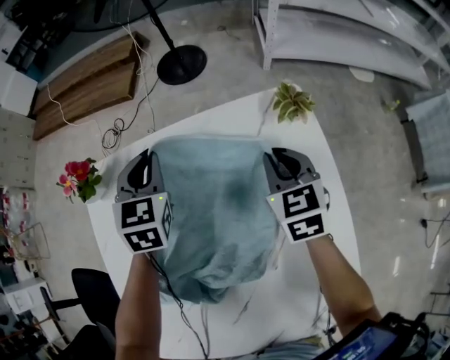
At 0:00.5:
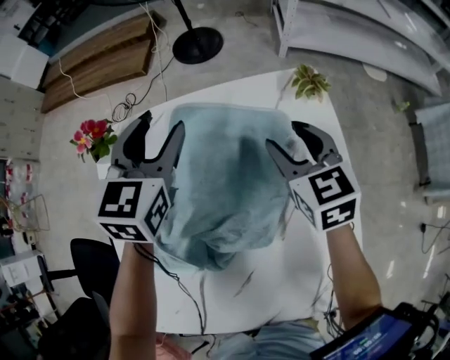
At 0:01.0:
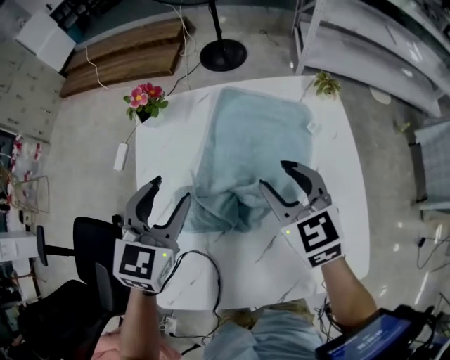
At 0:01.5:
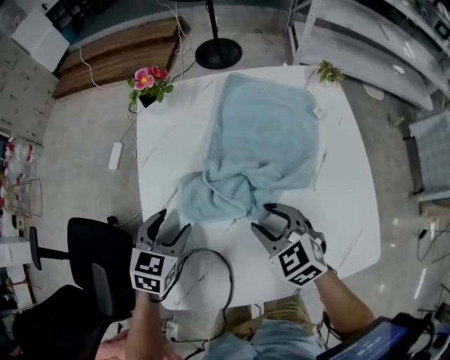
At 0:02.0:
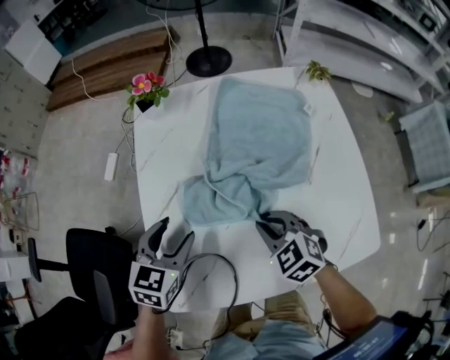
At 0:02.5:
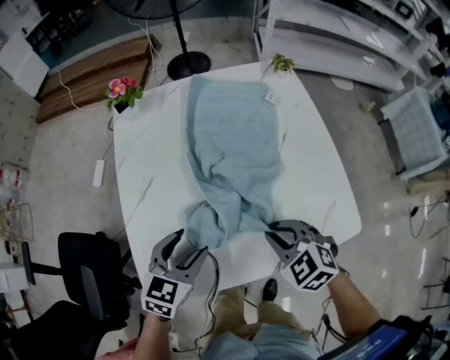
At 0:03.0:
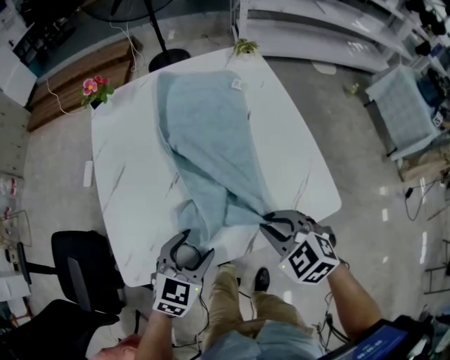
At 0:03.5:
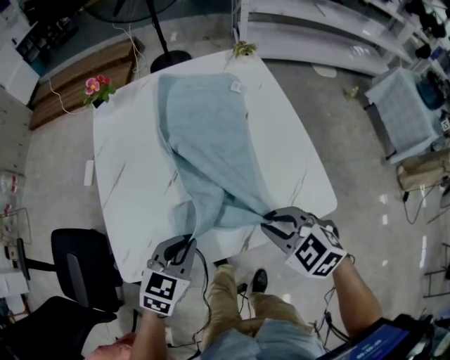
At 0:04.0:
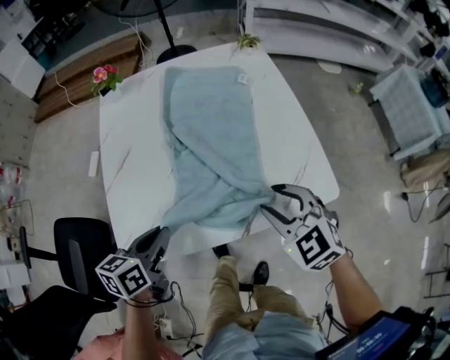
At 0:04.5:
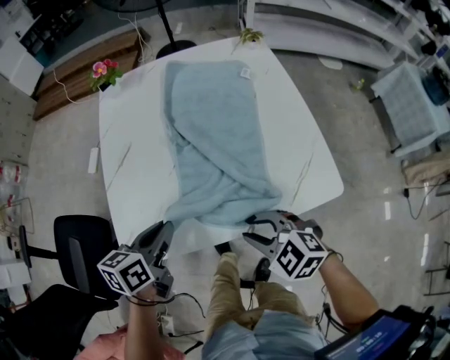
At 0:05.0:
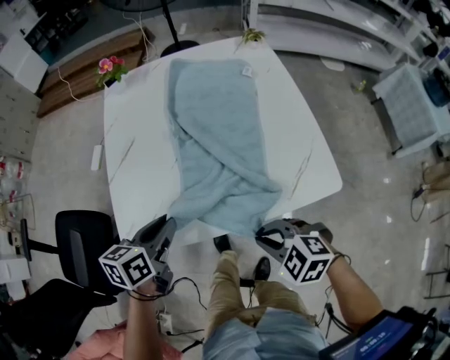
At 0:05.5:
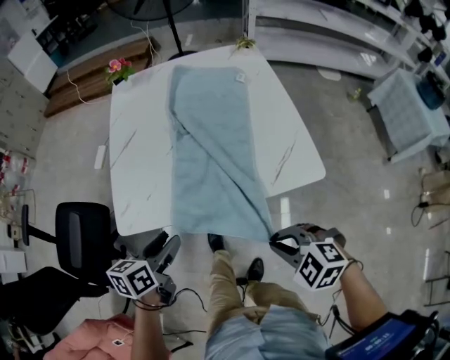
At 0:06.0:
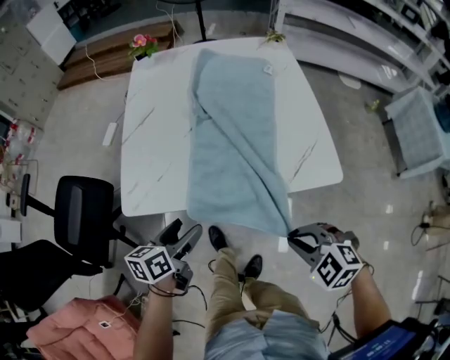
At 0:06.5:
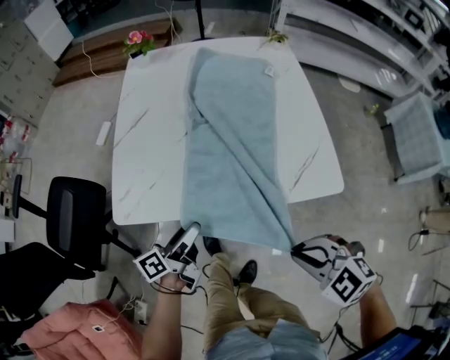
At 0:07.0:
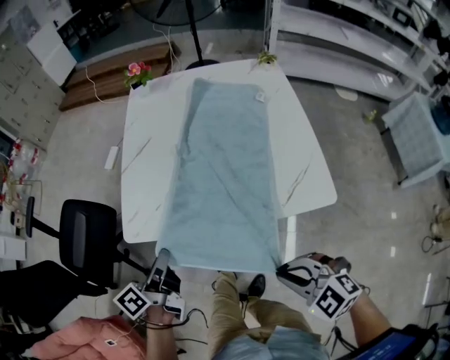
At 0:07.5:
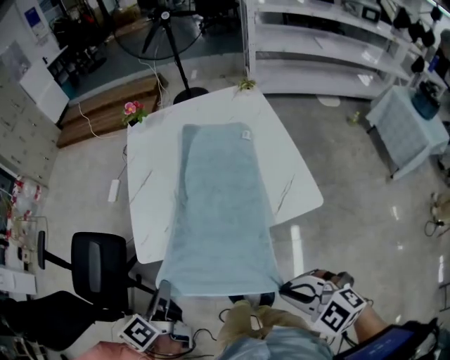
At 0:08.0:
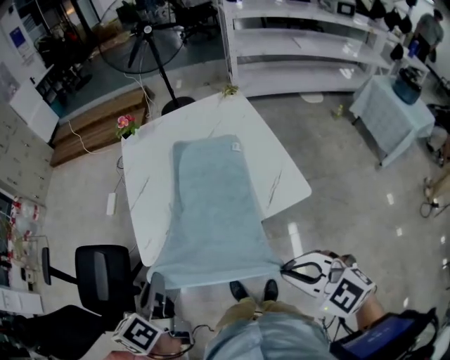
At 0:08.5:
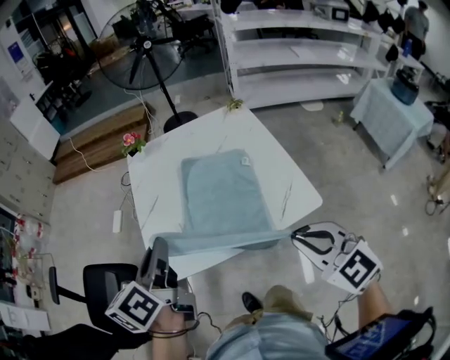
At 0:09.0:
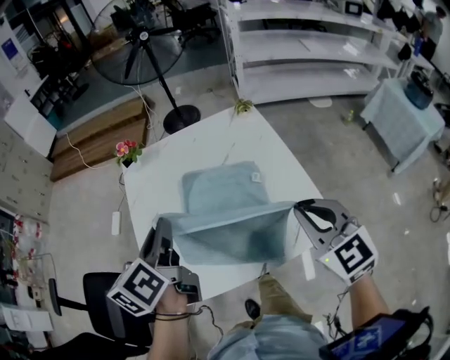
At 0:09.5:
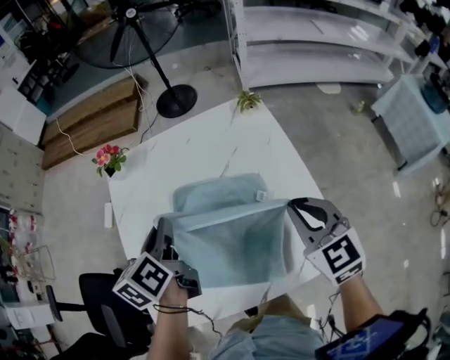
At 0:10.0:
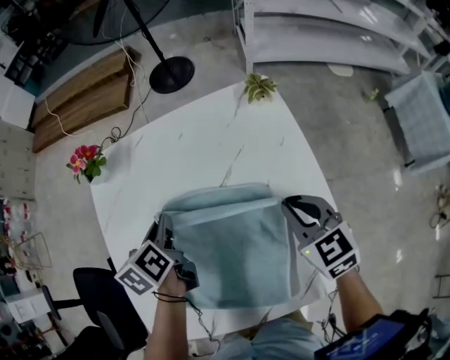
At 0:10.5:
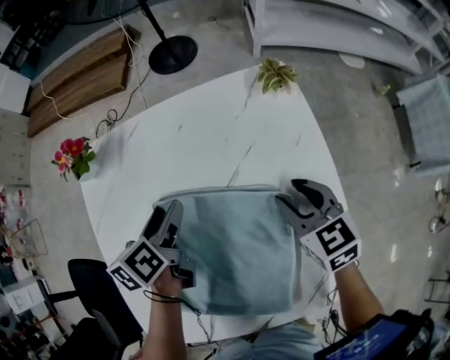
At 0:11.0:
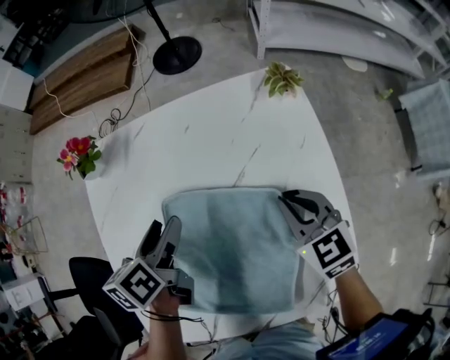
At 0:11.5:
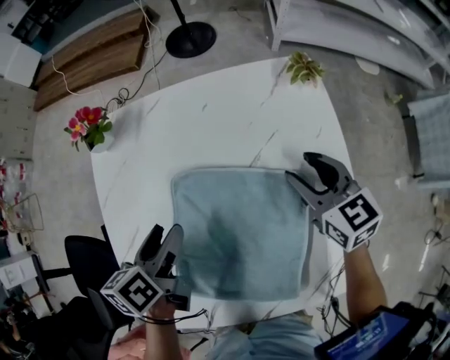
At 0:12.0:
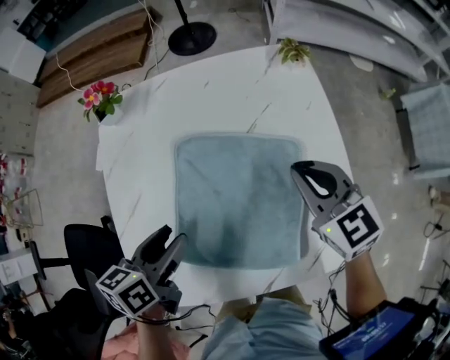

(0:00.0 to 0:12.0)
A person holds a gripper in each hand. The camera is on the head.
0:00.0 - 0:02.0: Both grippers move backward and to the left, roughly 40 cm. The left gripper changes its angle by roughly 20 degrees, and opens. The right gripper swivels approximately 40 degrees, and opens, then closes once more.
0:02.0 - 0:04.0: The right gripper is displaced to the right, backward and upward by some 20 cm, and opens, while the left gripper heads backward and to the right, covering approximately 20 cm, rotates about 30 degrees, and closes its fingers.
0:04.0 - 0:06.0: The left gripper goes roughly 15 cm backward and downward, and opens its fingers. Meanwhile the right gripper travels backward by some 20 cm, turns by some 30 degrees, and closes.
0:06.0 - 0:08.0: The two grippers go roughly 20 cm upward. The right gripper changes its angle by some 20 degrees, while the left gripper closes its fingers.
0:08.0 - 0:10.0: The pair of grippers is taken forward, roughly 50 cm. The right gripper rotates some 30 degrees. The left gripper changes its angle by roughly 20 degrees.
0:10.0 - 0:12.0: The right gripper travels to the left by about 5 cm, travels forward and back again, some 10 cm each way, and opens, then closes once more. Meanwhile the left gripper shifts some 15 cm backward, changes its angle by roughly 20 degrees, and opens its fingers.

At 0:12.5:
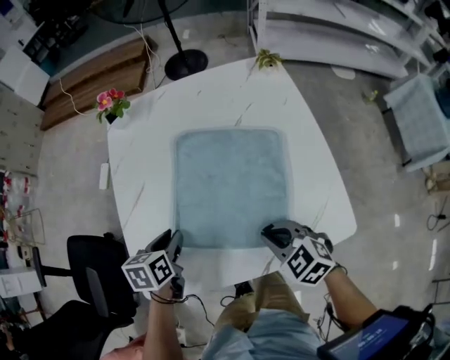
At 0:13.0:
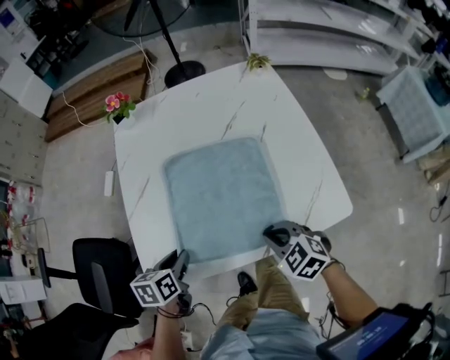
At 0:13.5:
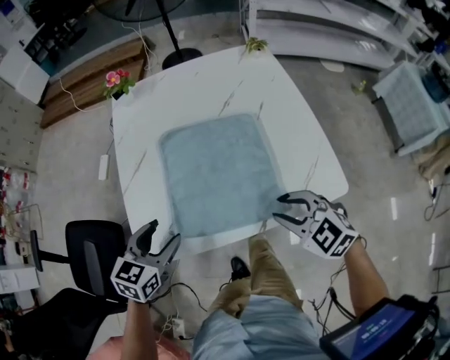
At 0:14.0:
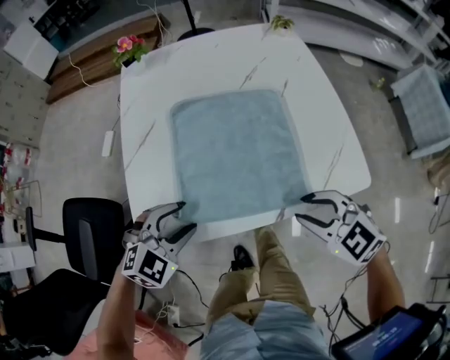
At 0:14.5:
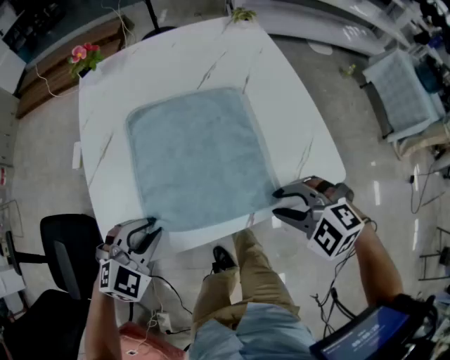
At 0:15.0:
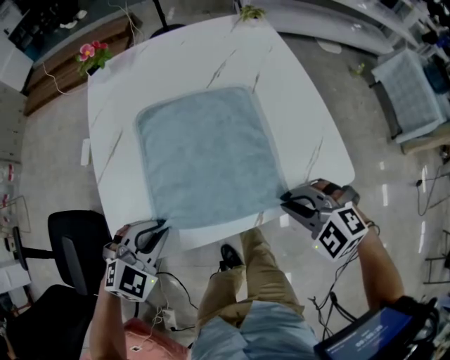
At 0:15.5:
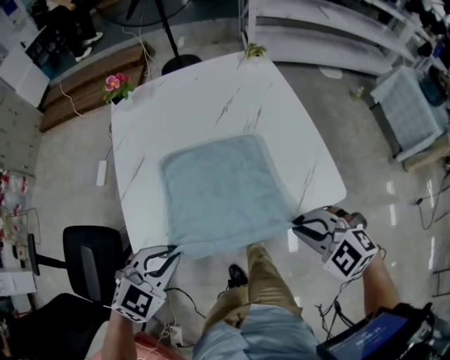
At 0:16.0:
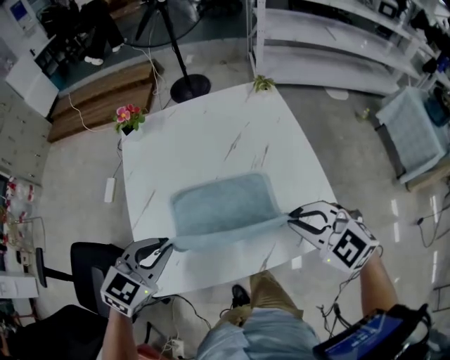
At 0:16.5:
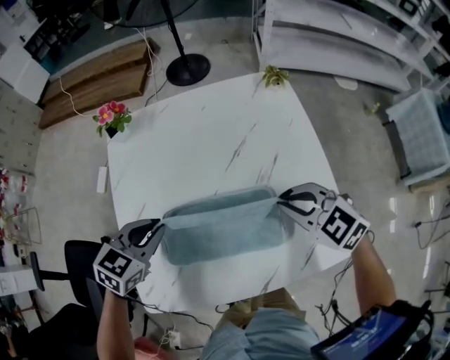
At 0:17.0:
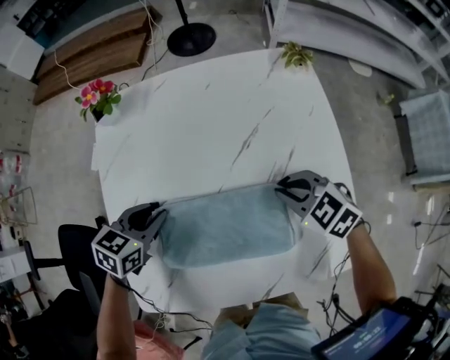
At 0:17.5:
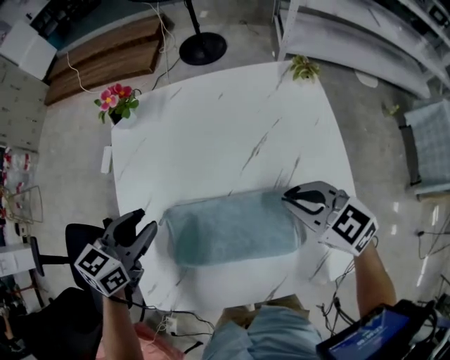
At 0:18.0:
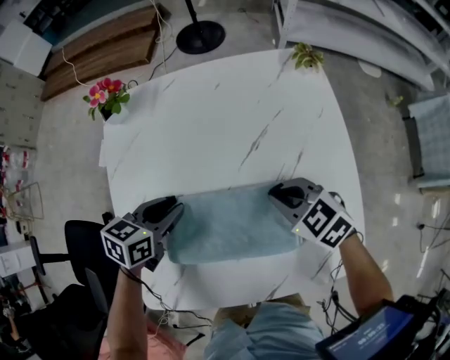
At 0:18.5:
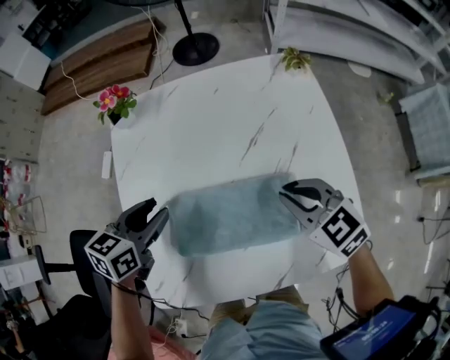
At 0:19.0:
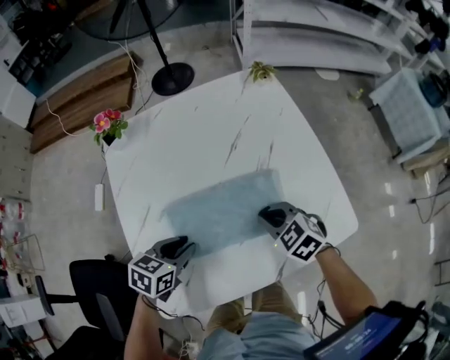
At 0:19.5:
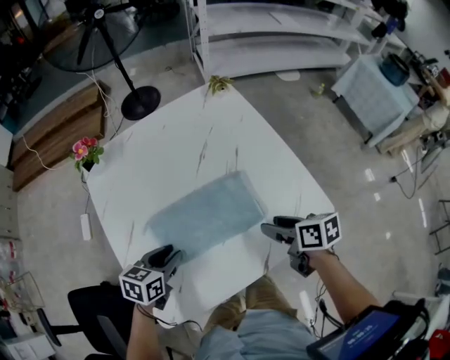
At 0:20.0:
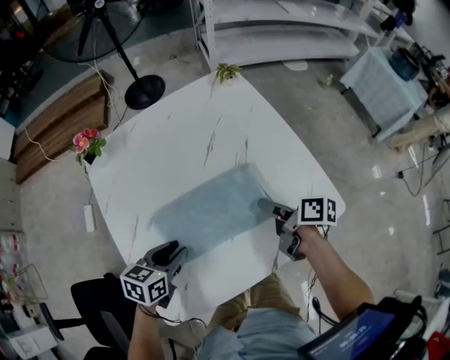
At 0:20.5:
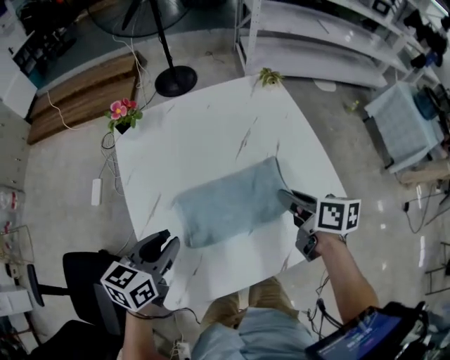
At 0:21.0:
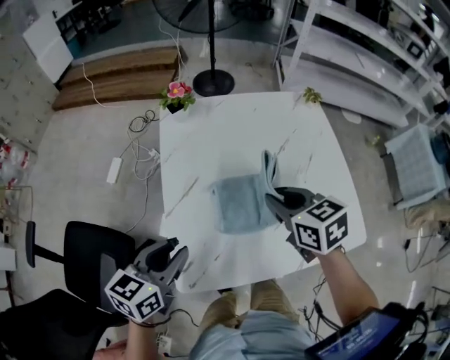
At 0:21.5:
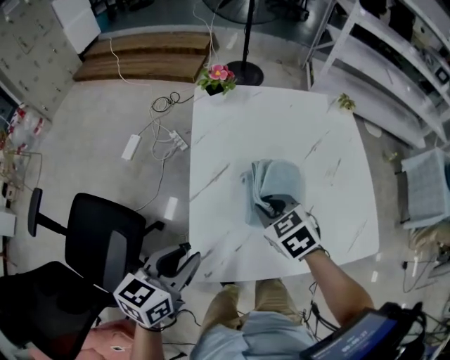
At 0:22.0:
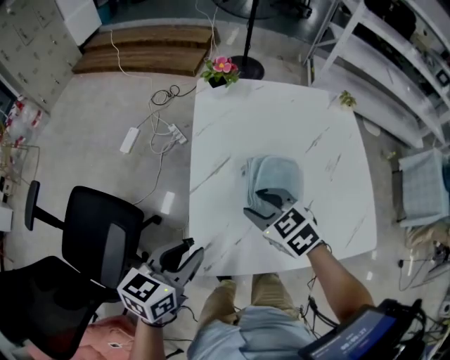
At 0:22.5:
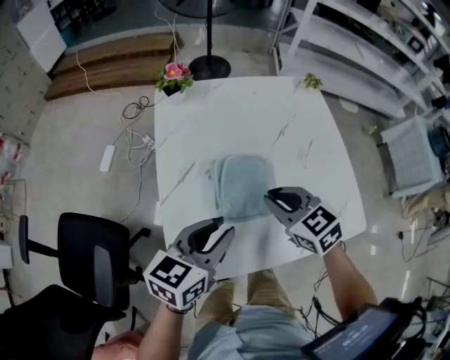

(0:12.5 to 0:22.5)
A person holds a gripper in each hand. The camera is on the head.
0:12.5 - 0:14.5: The grippers both shift backward by some 10 cm. The left gripper rotates around the line of its fingers by about 70 degrees, clockwise from behind, and opens, then closes once more; the right gripper turns by roughly 30 degrees, and opens its fingers.
0:14.5 - 0:16.5: The right gripper travels forward by roughly 20 cm, rotates roughly 20 degrees, and closes its fingers; the left gripper shifts about 20 cm forward and upward, and turns by some 30 degrees.
0:16.5 - 0:18.5: The right gripper moves up and down over roughly 10 cm, changing direction 3 times, while the left gripper swings up and down, some 10 cm each way, with 3 reversals, changes its angle by about 20 degrees, and opens up.
0:18.5 - 0:20.5: The right gripper moves backward, roughly 5 cm, rotates around the line of its fingers by about 60 degrees, clockwise from behind, and opens, then closes once more; the left gripper goes roughly 10 cm backward, and moves about 10 cm downward and comes back.
0:20.5 - 0:22.5: The right gripper travels to the left by some 15 cm, twists about 60 degrees counterclockwise, seen from behind, and opens, then closes once more. Meanwhile the left gripper is displaced backward by roughly 5 cm, and travels to the left and back again, some 10 cm each way.

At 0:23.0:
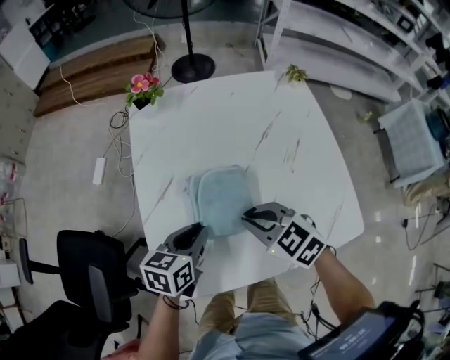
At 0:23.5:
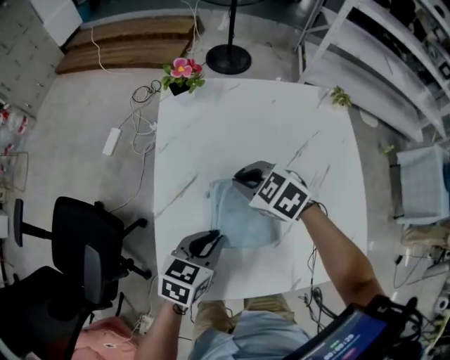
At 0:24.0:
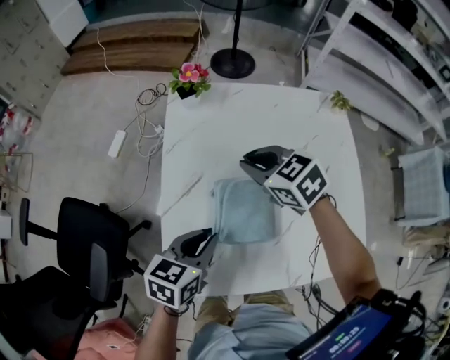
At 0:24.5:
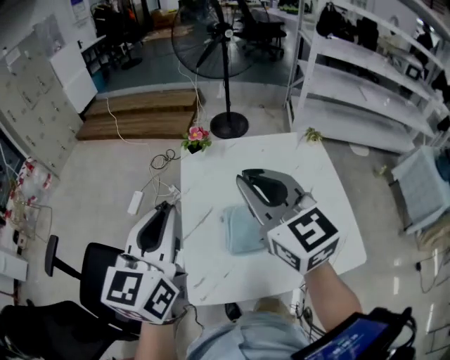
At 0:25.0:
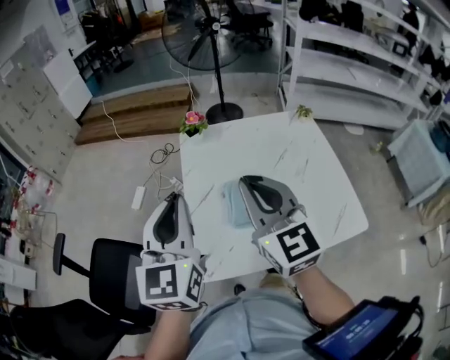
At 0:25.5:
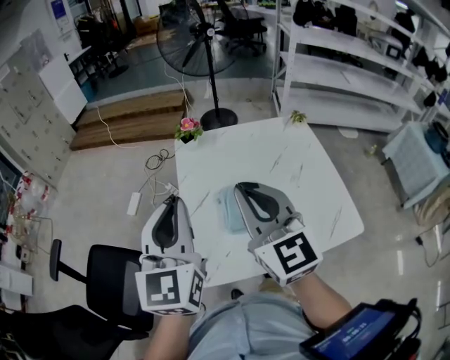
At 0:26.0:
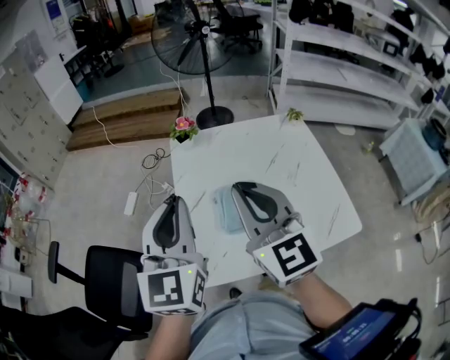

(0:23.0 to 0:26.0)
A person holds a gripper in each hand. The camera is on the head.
0:23.0 - 0:24.5: Both grippers move upward, roughly 30 cm. The right gripper angles its fingers upward, by some 40 degrees. Meanwhile the left gripper swivels roughly 40 degrees.
0:24.5 - 0:26.0: The left gripper travels backward by some 5 cm, while the right gripper shifts about 10 cm backward.

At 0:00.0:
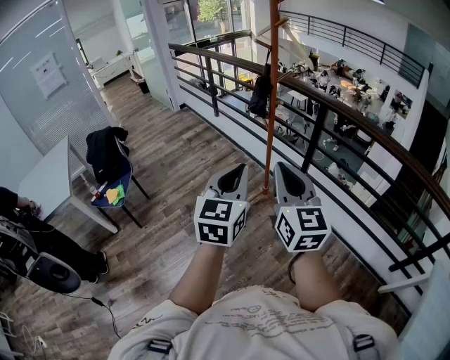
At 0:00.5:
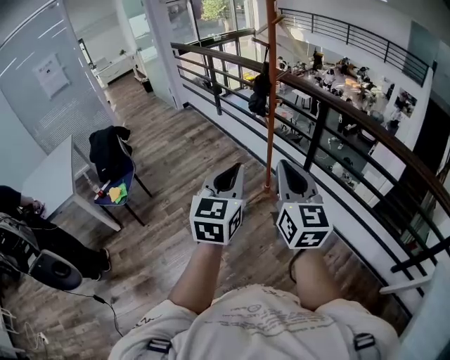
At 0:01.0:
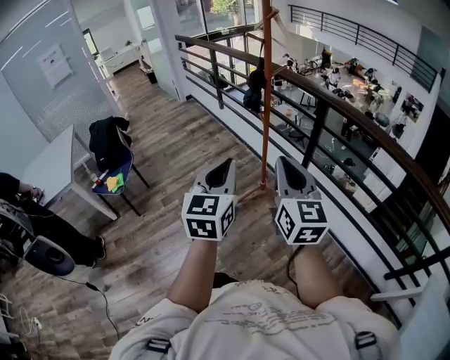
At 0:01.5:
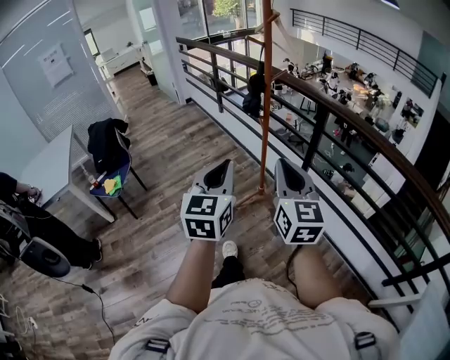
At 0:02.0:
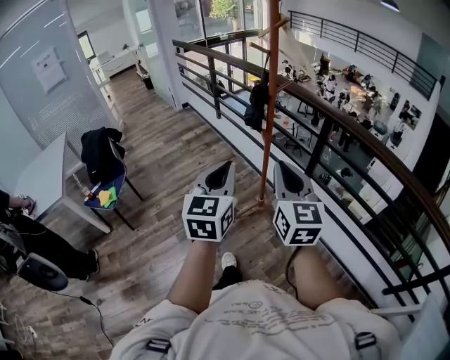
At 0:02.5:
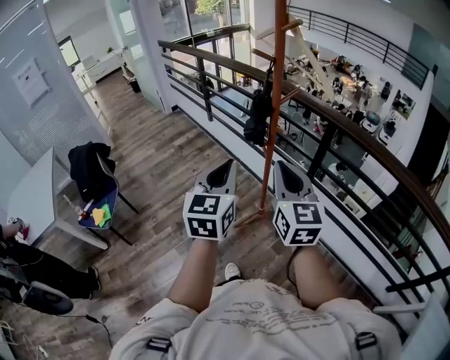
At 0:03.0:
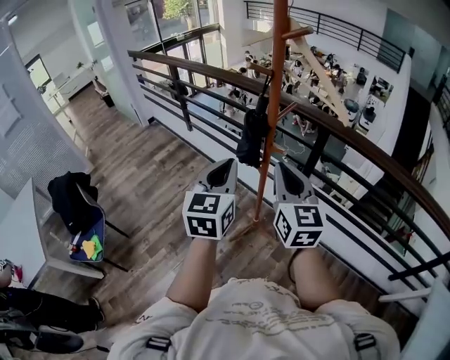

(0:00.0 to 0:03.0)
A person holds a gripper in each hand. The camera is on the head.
0:00.0 - 0:01.5: The left gripper shifts by approximately 5 cm, while the right gripper shifts about 10 cm to the right and forward.
0:01.5 - 0:03.0: Both grippers move forward, roughly 35 cm.
